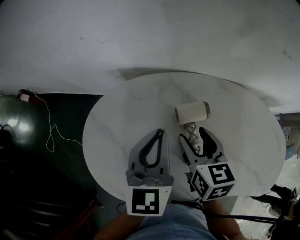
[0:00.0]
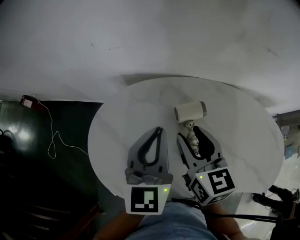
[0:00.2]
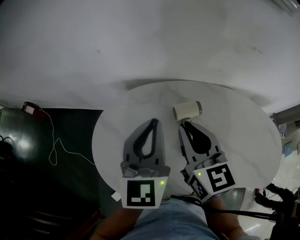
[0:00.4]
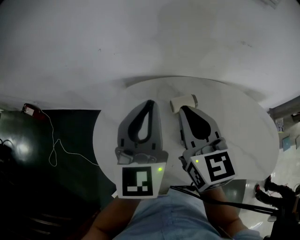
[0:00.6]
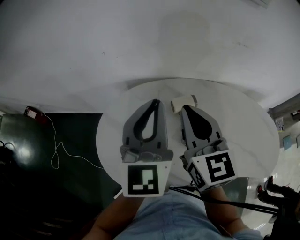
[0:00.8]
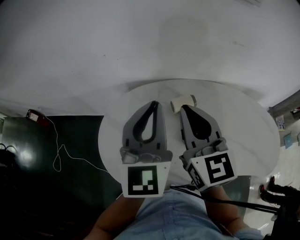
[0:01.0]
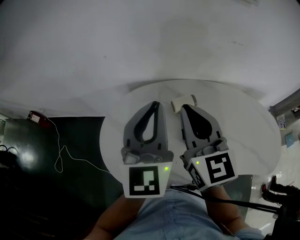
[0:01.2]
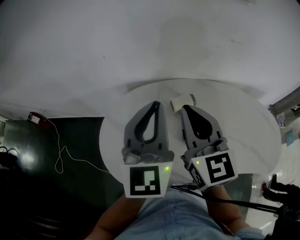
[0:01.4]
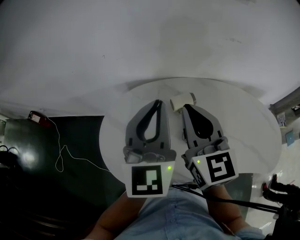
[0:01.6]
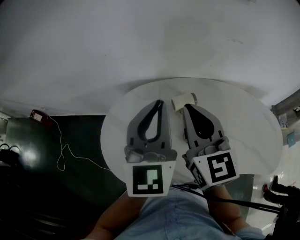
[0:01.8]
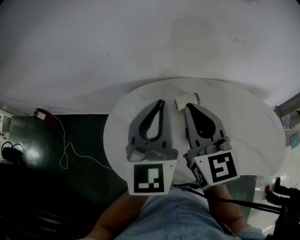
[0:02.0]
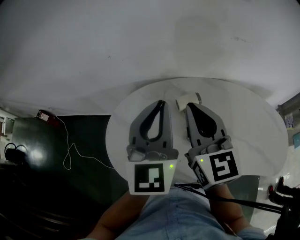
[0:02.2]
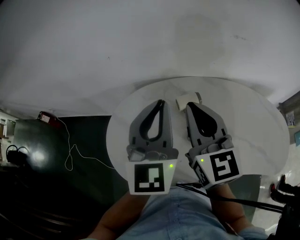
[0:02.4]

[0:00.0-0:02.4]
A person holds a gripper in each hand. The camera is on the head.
0:00.0 to 0:01.2: Both grippers move upward, roughly 20 cm. The left gripper turns by roughly 20 degrees. The right gripper angles its fingers upward, by some 40 degrees, and closes its fingers.
0:01.2 to 0:02.4: The grippers make only small movements.

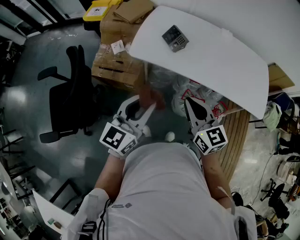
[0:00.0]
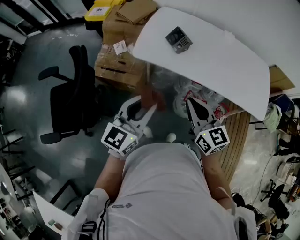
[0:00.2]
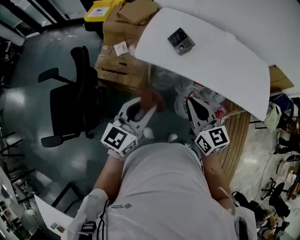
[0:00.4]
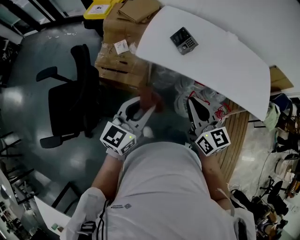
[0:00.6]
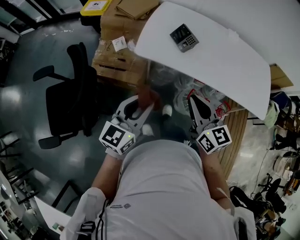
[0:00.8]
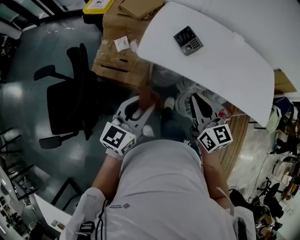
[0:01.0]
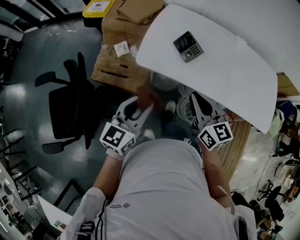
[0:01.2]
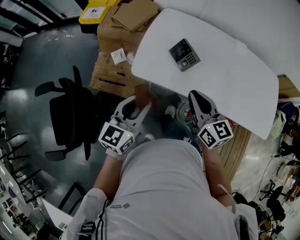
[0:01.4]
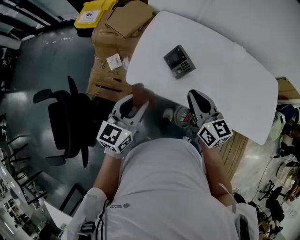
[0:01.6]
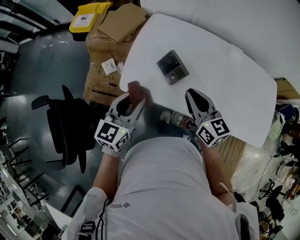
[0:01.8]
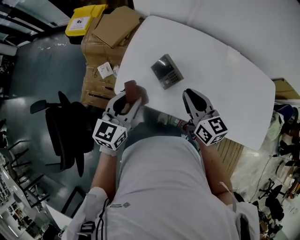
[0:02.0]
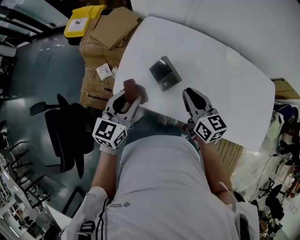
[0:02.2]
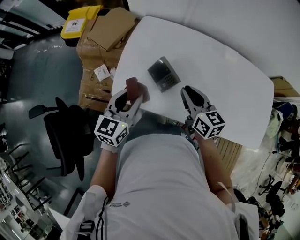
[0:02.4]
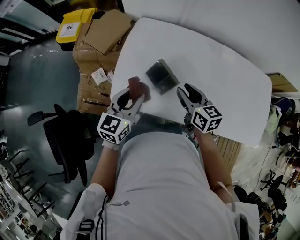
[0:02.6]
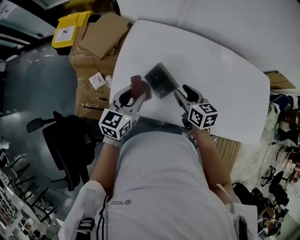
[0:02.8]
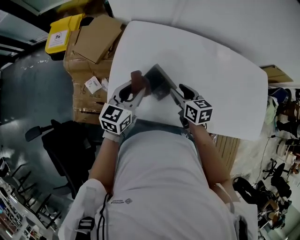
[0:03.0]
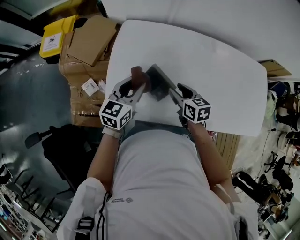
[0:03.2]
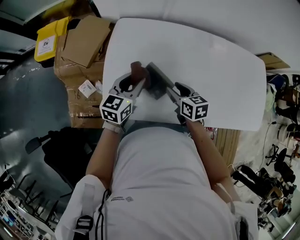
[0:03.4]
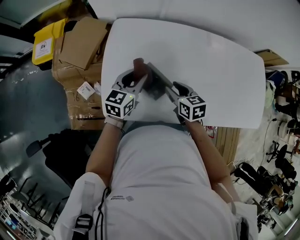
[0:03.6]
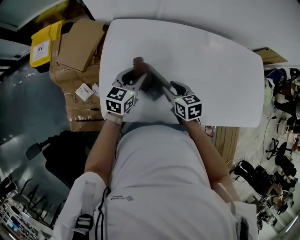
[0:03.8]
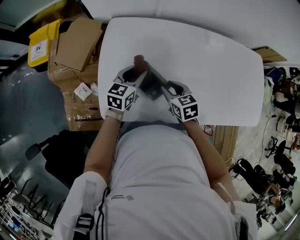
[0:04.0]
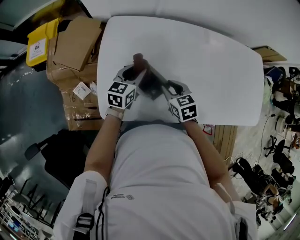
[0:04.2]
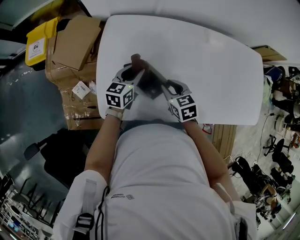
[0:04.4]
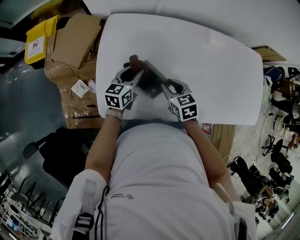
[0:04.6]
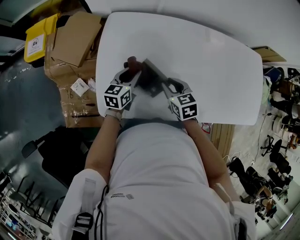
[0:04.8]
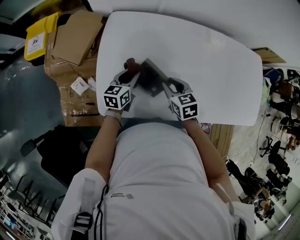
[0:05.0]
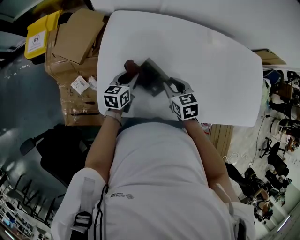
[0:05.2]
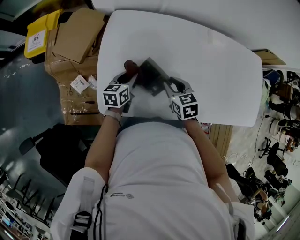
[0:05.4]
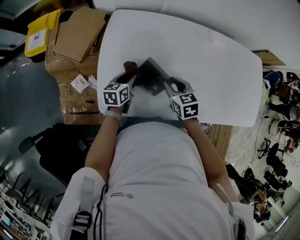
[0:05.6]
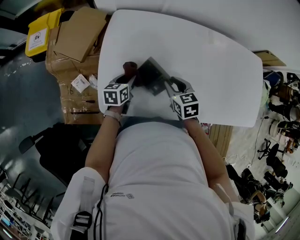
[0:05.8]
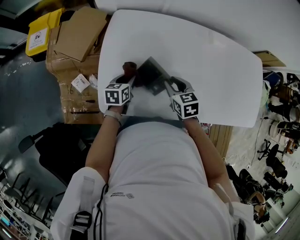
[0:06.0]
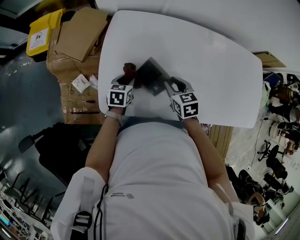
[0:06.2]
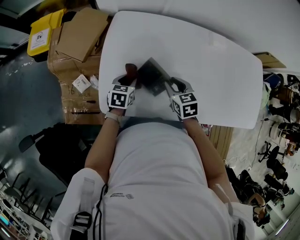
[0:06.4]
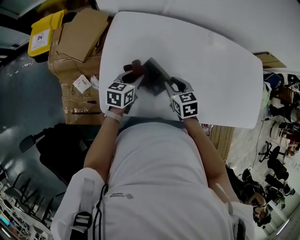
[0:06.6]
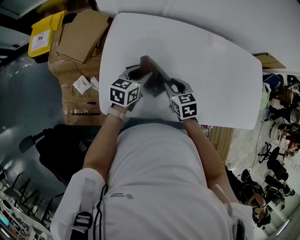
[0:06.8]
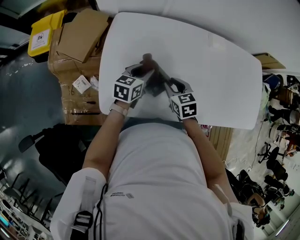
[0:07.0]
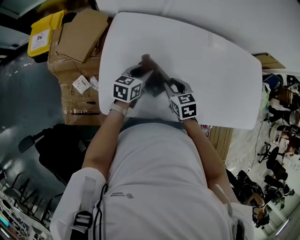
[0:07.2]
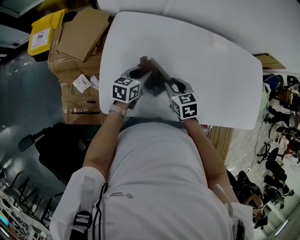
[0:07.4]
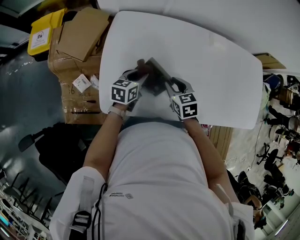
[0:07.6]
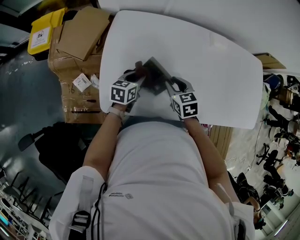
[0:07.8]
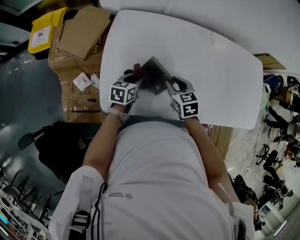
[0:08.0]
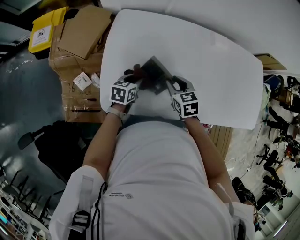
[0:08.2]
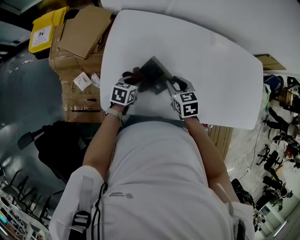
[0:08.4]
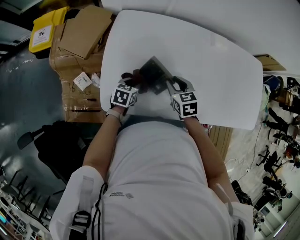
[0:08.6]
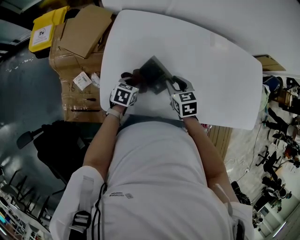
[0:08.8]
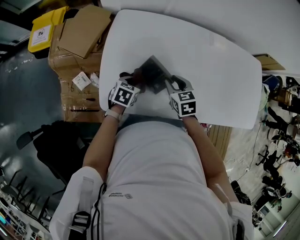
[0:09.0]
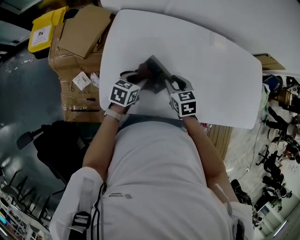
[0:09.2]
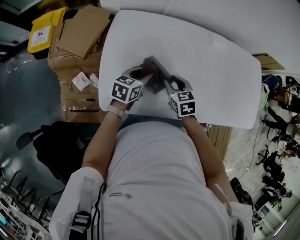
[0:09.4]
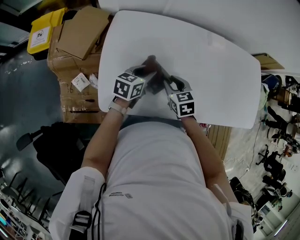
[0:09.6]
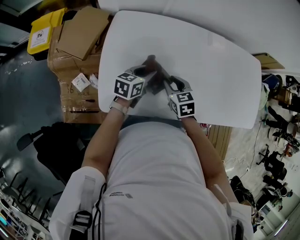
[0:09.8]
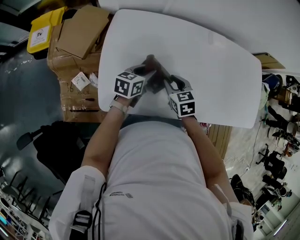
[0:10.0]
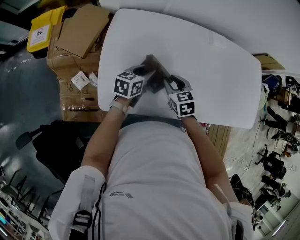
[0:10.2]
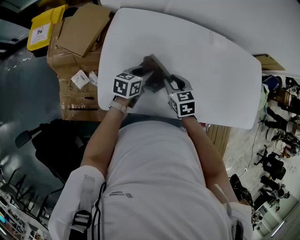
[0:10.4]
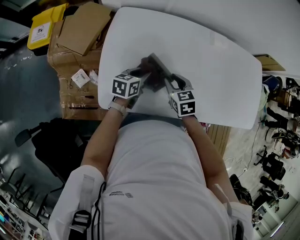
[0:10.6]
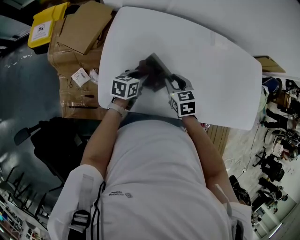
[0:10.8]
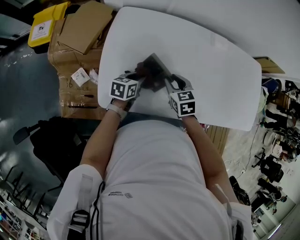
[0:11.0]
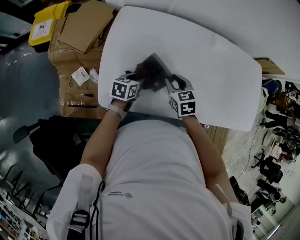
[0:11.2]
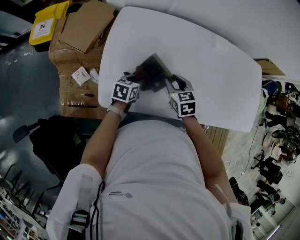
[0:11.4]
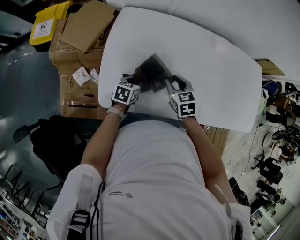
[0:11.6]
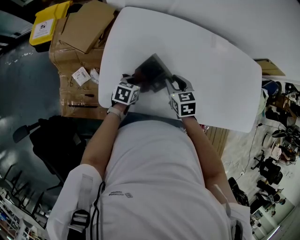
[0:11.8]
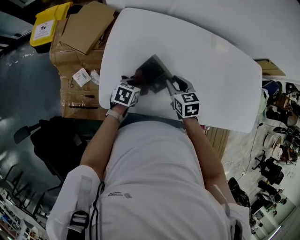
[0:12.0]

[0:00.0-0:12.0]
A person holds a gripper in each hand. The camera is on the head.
0:00.0 to 0:01.6: The grippers both shift forward by some 25 cm.
0:01.6 to 0:03.0: The right gripper shifts some 20 cm forward and downward, rotates some 30 degrees, and opens up. The left gripper moves forward, some 20 cm.
0:03.0 to 0:04.4: The left gripper goes some 15 cm downward and forward.
0:04.4 to 0:06.0: The left gripper moves downward, backward and to the left, roughly 10 cm, and rotates approximately 20 degrees.
0:06.0 to 0:07.6: The left gripper travels to the right by roughly 5 cm.
0:07.6 to 0:09.0: The left gripper goes some 5 cm backward, and swivels approximately 30 degrees.
0:09.0 to 0:10.4: The left gripper shifts roughly 10 cm forward and upward, and changes its angle by approximately 30 degrees.
0:10.4 to 0:12.0: The left gripper moves backward and downward, some 10 cm, and changes its angle by some 20 degrees.

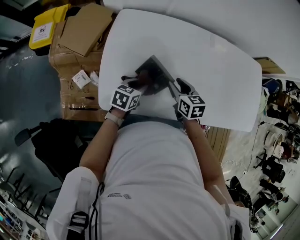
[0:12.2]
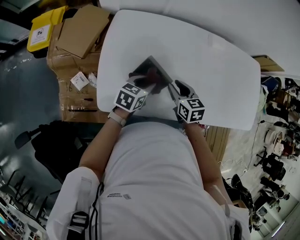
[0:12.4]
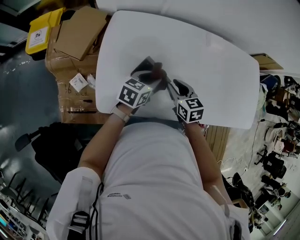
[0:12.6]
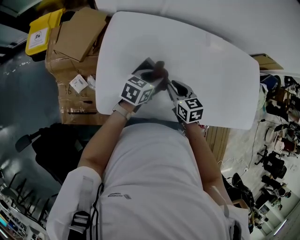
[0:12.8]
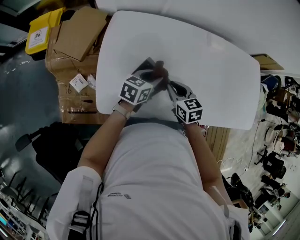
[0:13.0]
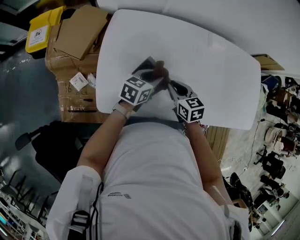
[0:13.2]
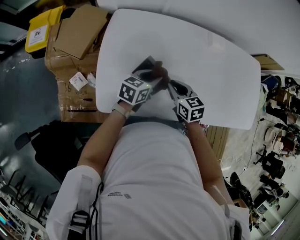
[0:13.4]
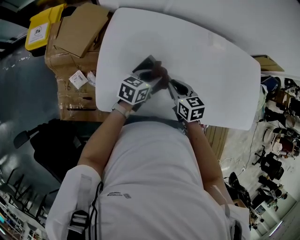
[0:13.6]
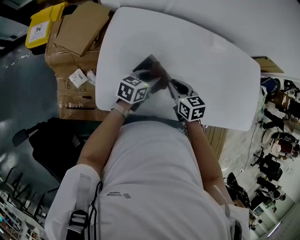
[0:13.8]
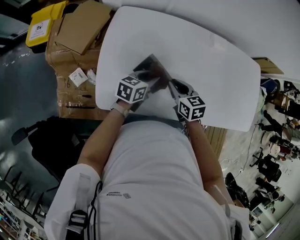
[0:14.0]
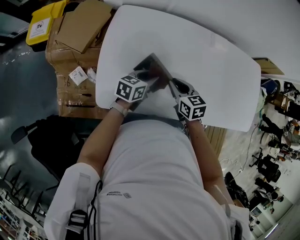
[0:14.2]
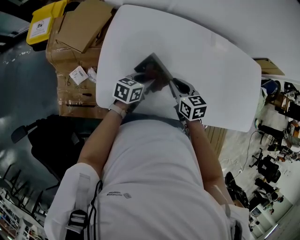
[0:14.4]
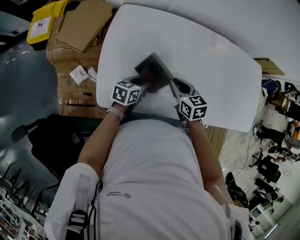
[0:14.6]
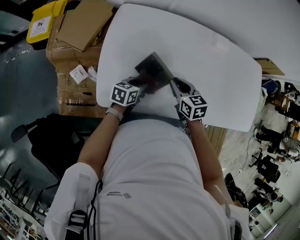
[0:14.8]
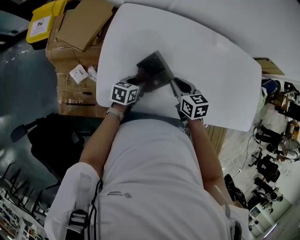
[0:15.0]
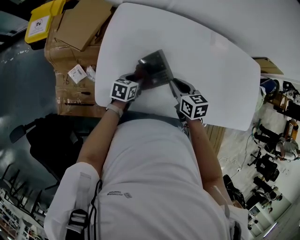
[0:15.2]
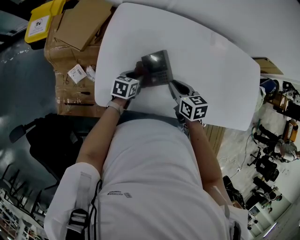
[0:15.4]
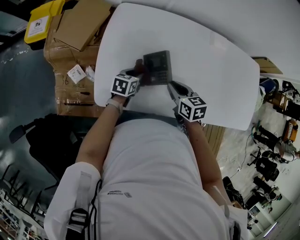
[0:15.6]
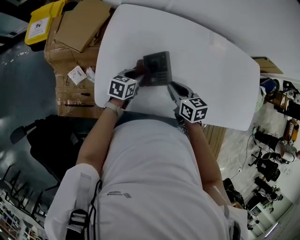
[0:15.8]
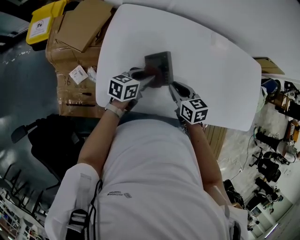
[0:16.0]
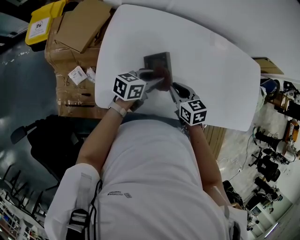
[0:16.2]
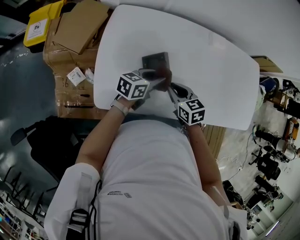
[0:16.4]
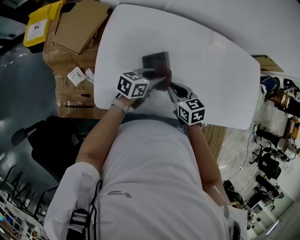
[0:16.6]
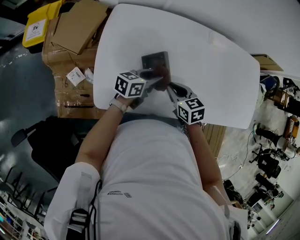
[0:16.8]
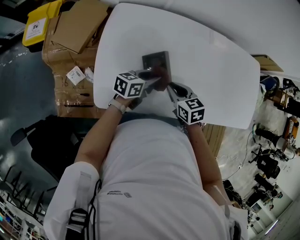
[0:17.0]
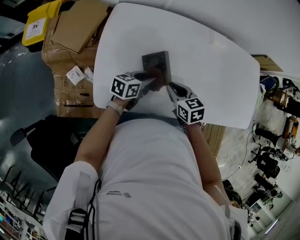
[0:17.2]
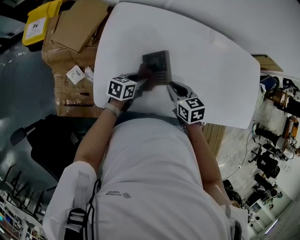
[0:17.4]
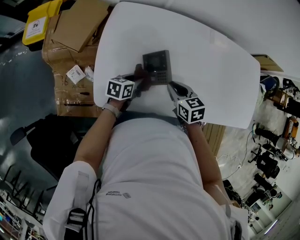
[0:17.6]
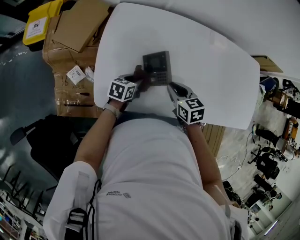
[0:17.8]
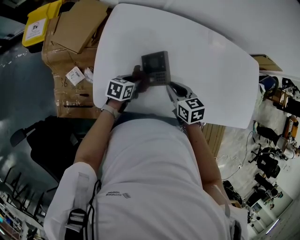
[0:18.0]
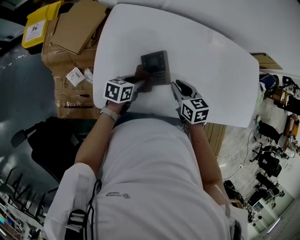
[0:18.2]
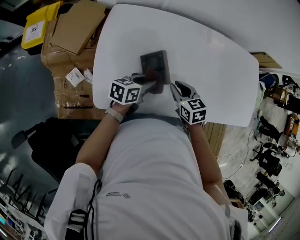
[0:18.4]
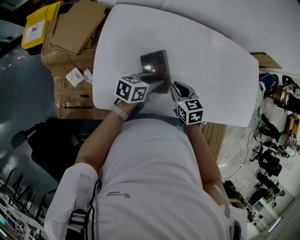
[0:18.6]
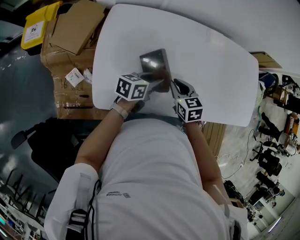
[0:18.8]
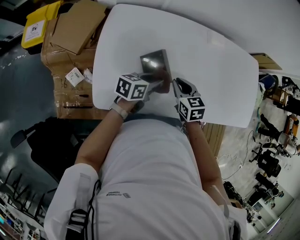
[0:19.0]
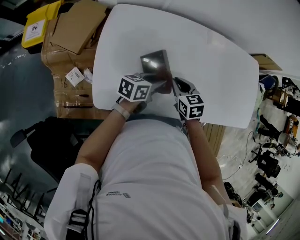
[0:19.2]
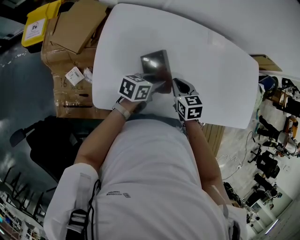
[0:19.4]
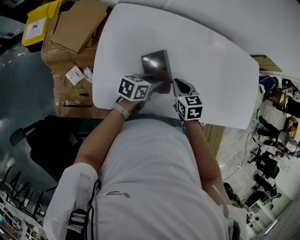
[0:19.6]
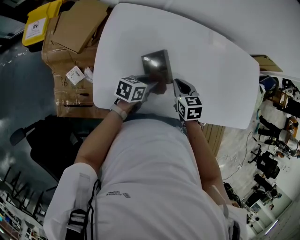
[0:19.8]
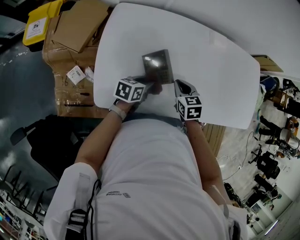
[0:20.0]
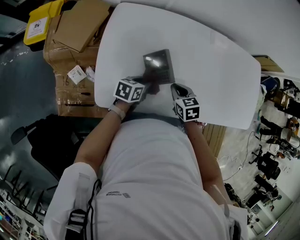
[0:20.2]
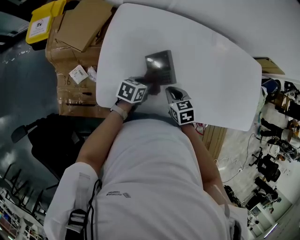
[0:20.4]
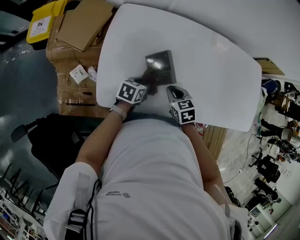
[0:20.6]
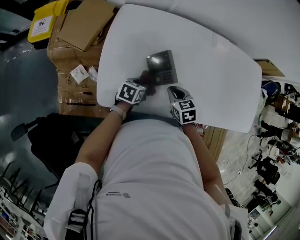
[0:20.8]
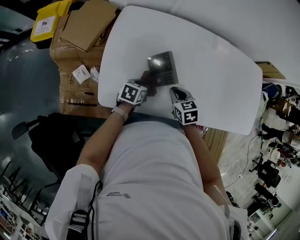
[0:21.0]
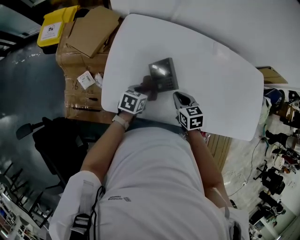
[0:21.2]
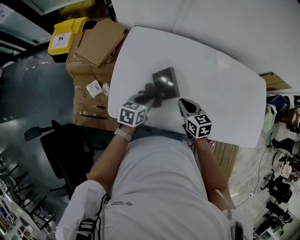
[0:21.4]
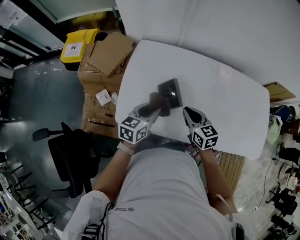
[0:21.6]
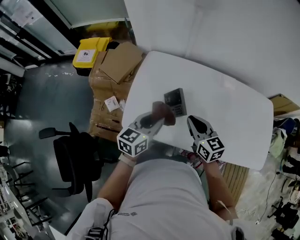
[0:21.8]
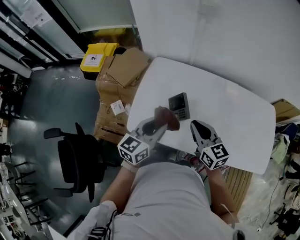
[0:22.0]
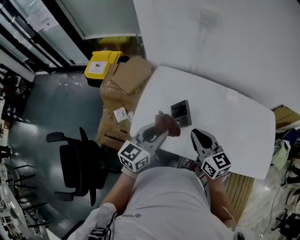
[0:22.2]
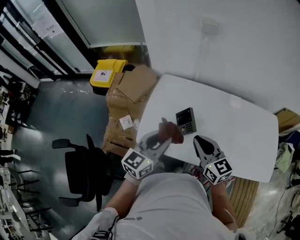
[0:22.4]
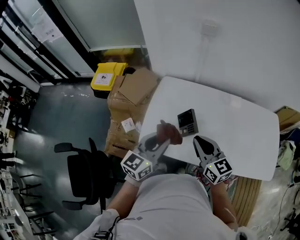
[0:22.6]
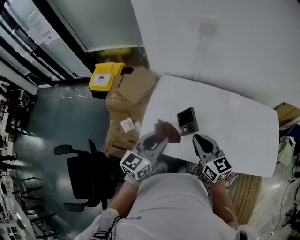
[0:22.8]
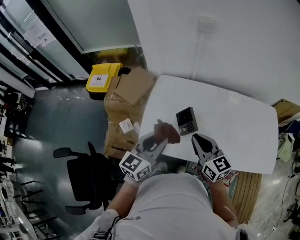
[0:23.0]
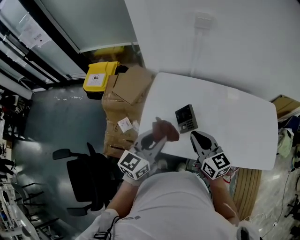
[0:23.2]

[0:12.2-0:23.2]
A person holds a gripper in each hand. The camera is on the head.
0:12.2 to 0:13.8: The left gripper is displaced forward by roughly 5 cm.
0:13.8 to 0:15.4: The left gripper heads downward and to the left, covering about 10 cm.
0:15.4 to 0:17.0: The left gripper heads upward and to the right, covering some 10 cm, and changes its angle by about 30 degrees.
0:17.0 to 0:18.4: The left gripper reaches approximately 10 cm downward, then returns.
0:18.4 to 0:20.0: The grippers make only small movements.
0:20.0 to 0:21.6: Both grippers move upward, roughly 15 cm. The left gripper changes its angle by roughly 30 degrees. Meanwhile the right gripper rotates some 30 degrees.
0:21.6 to 0:23.2: The grippers both shift upward and to the left by about 15 cm. The left gripper changes its angle by approximately 20 degrees.
